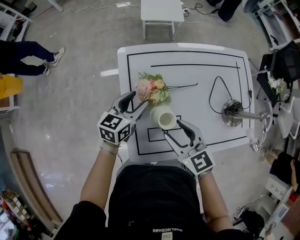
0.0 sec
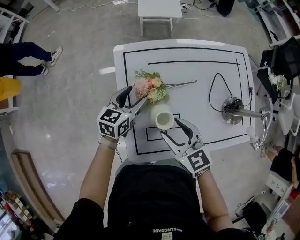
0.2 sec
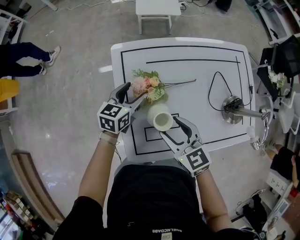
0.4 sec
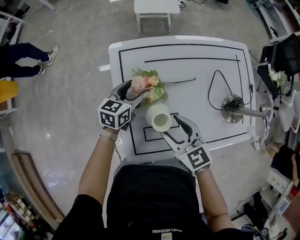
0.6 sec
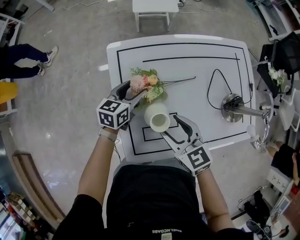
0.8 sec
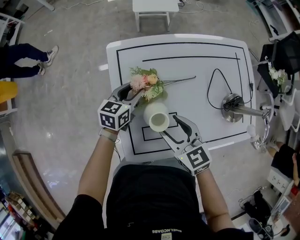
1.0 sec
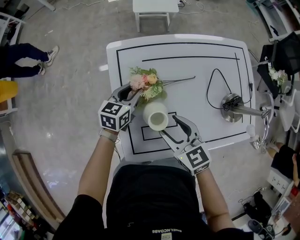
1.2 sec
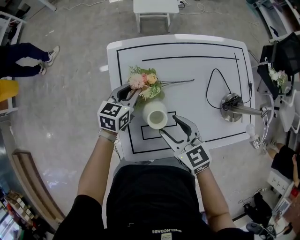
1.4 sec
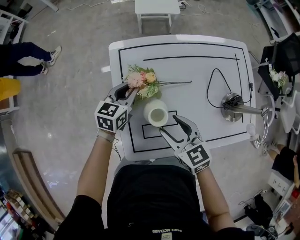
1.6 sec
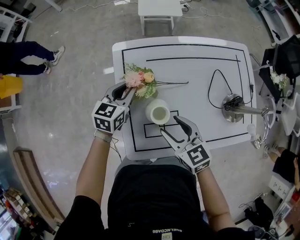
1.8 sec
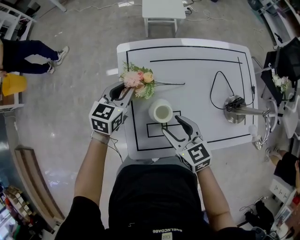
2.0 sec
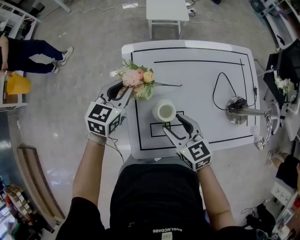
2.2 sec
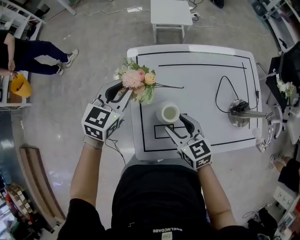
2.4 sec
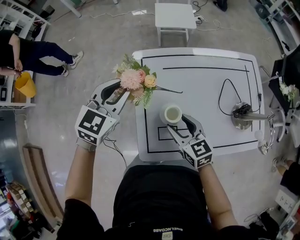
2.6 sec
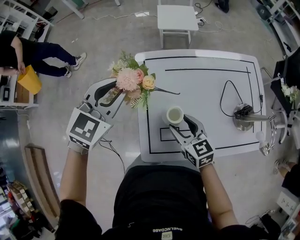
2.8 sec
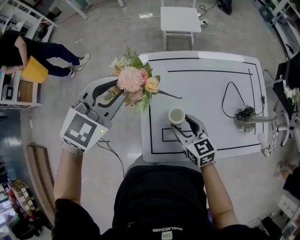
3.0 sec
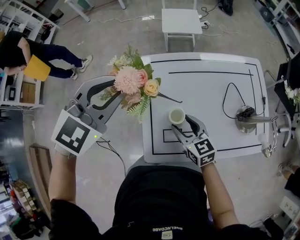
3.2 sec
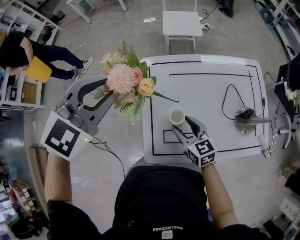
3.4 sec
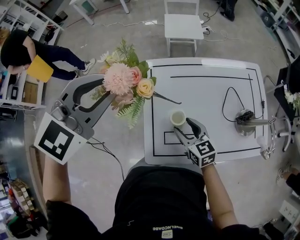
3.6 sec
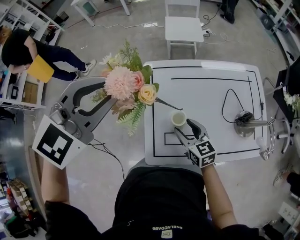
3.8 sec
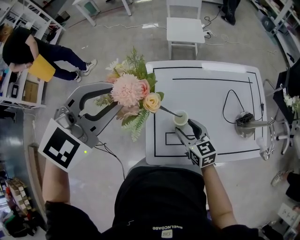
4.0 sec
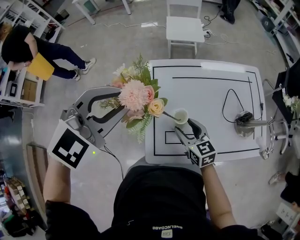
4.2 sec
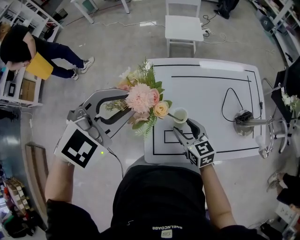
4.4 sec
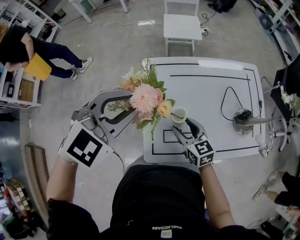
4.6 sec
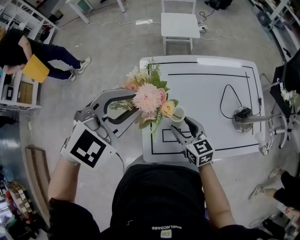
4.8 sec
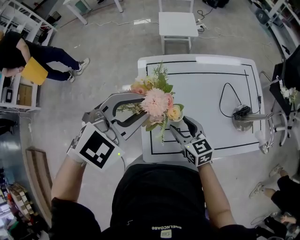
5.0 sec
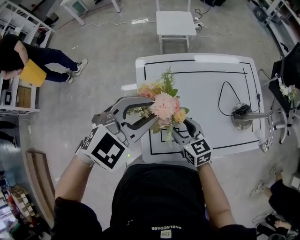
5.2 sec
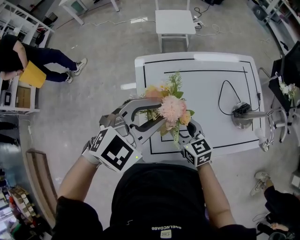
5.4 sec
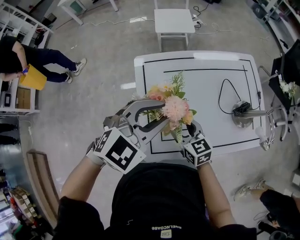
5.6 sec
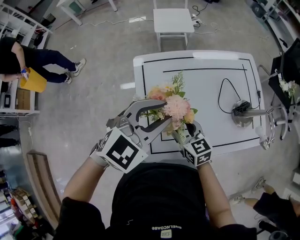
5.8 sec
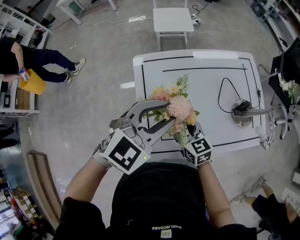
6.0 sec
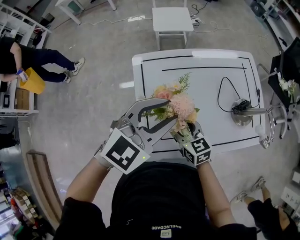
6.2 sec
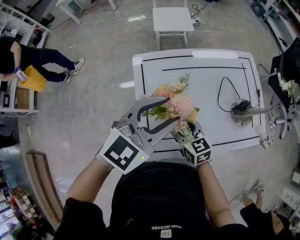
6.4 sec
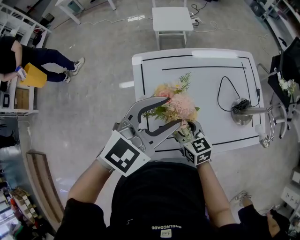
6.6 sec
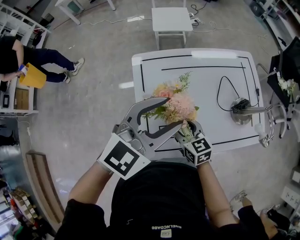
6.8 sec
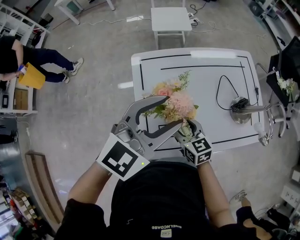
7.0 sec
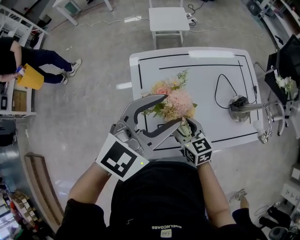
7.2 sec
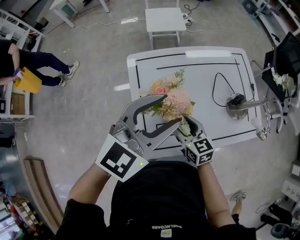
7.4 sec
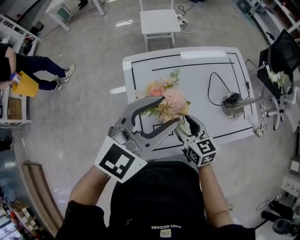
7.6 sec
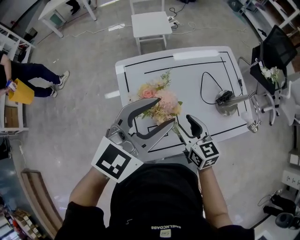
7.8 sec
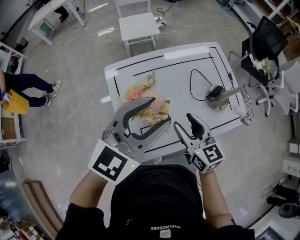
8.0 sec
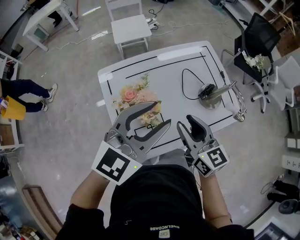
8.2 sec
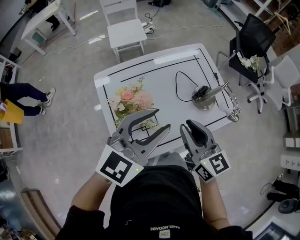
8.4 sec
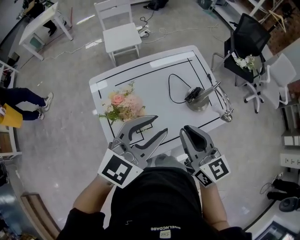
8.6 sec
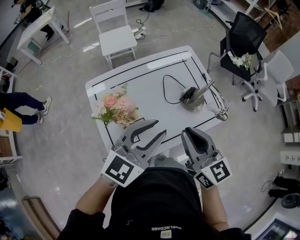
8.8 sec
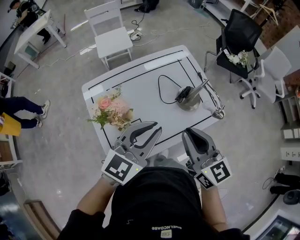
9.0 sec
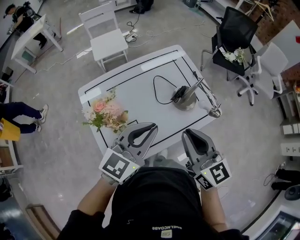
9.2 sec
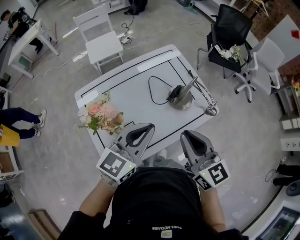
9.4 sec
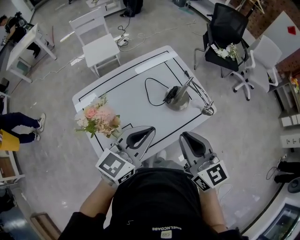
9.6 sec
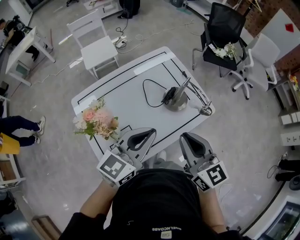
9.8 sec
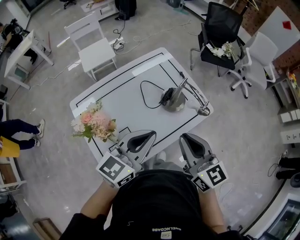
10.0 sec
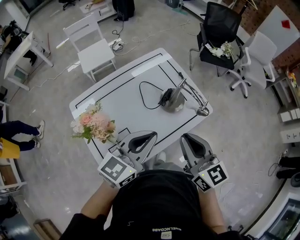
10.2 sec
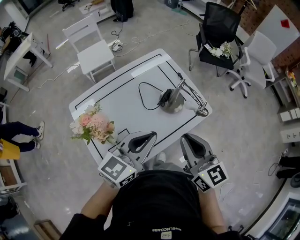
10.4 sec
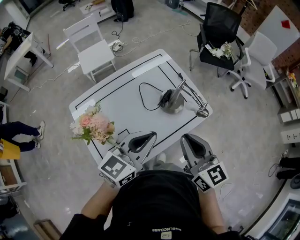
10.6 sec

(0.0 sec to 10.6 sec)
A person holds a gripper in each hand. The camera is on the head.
0.0 sec - 1.6 sec: The left gripper closes its fingers.
1.6 sec - 3.0 sec: The left gripper shifts approximately 25 cm upward, and rotates about 40 degrees.
3.0 sec - 4.6 sec: The left gripper heads backward, covering about 5 cm.
4.6 sec - 6.0 sec: The left gripper moves to the right and downward, approximately 15 cm.
6.0 sec - 7.6 sec: The left gripper shifts some 5 cm upward. The right gripper ends up about 5 cm from where it was.
7.6 sec - 9.0 sec: The left gripper shifts some 15 cm to the right, and closes its fingers; the right gripper moves to the right and upward, some 30 cm, rotates some 20 degrees, and closes its fingers.
9.0 sec - 10.6 sec: Both grippers move to the right, some 5 cm.

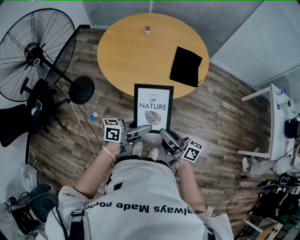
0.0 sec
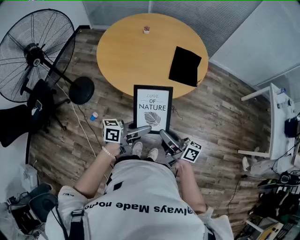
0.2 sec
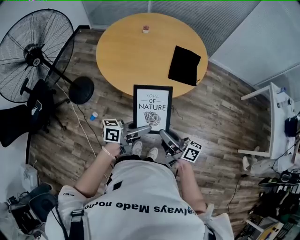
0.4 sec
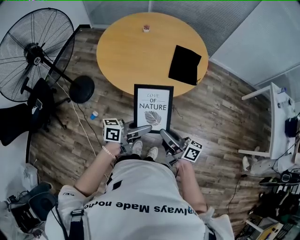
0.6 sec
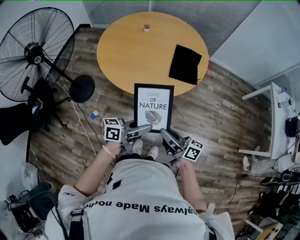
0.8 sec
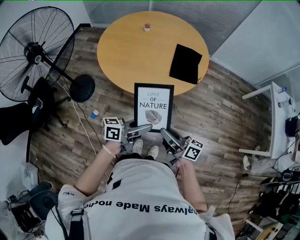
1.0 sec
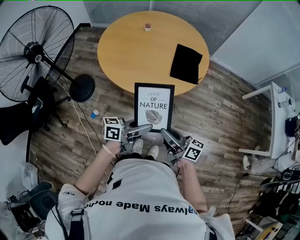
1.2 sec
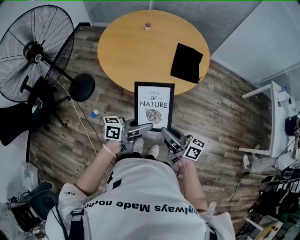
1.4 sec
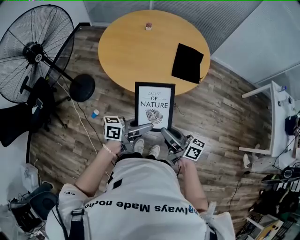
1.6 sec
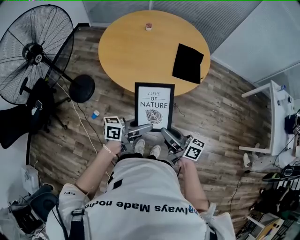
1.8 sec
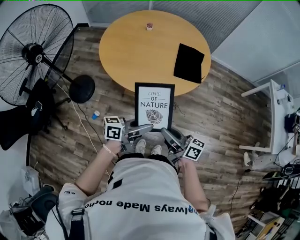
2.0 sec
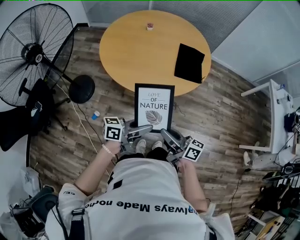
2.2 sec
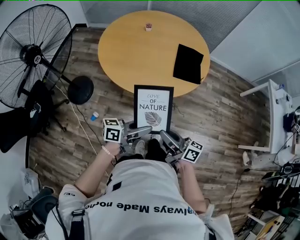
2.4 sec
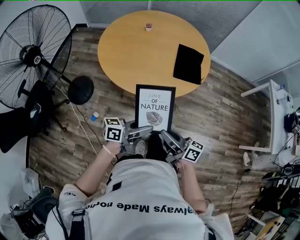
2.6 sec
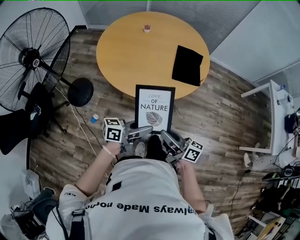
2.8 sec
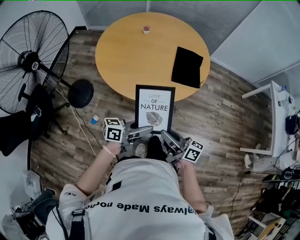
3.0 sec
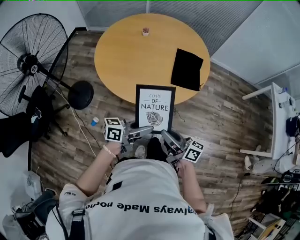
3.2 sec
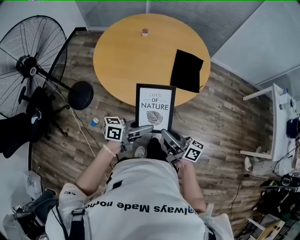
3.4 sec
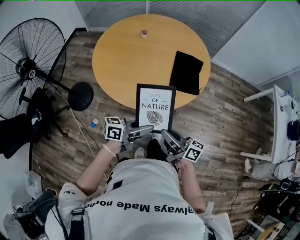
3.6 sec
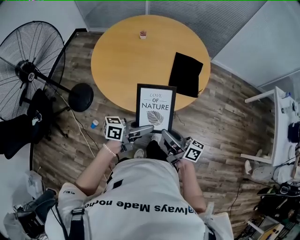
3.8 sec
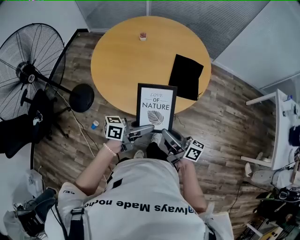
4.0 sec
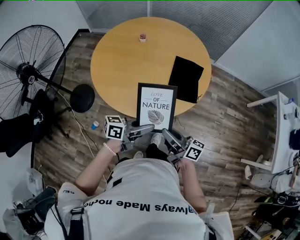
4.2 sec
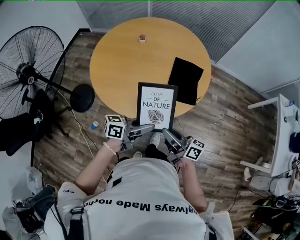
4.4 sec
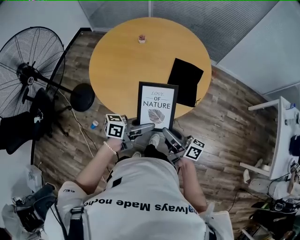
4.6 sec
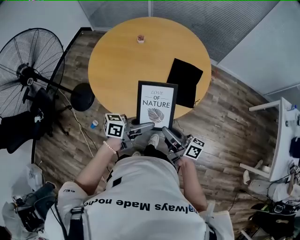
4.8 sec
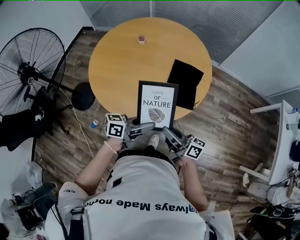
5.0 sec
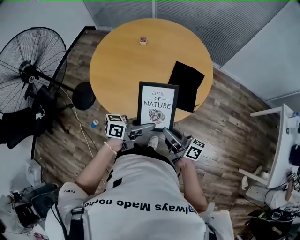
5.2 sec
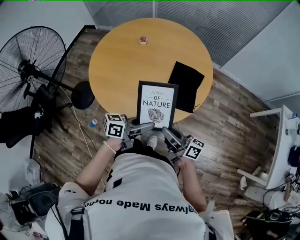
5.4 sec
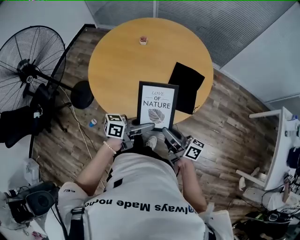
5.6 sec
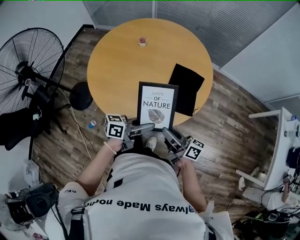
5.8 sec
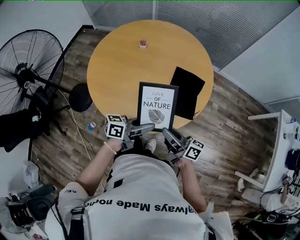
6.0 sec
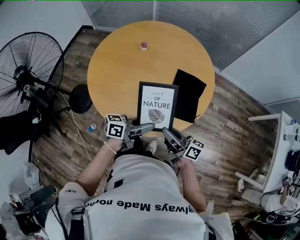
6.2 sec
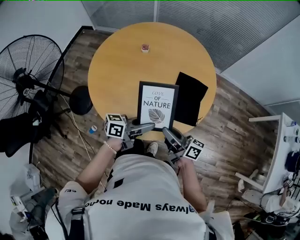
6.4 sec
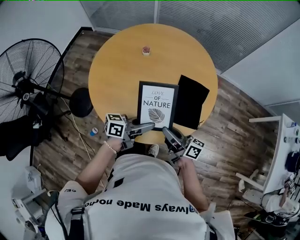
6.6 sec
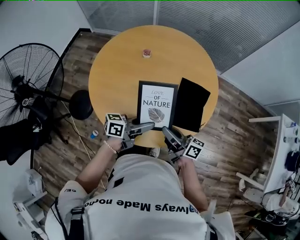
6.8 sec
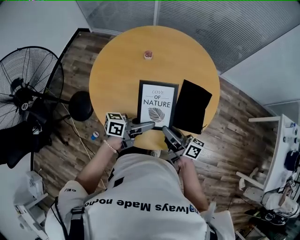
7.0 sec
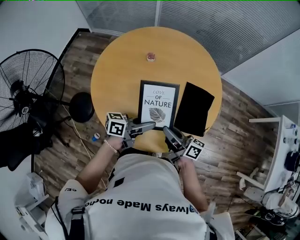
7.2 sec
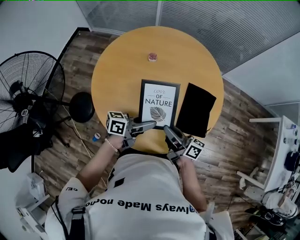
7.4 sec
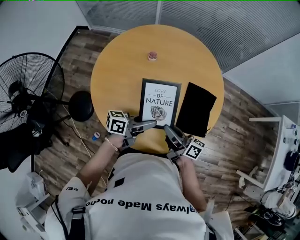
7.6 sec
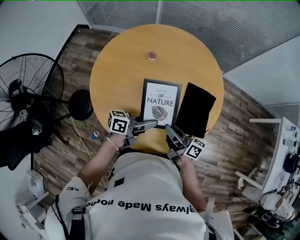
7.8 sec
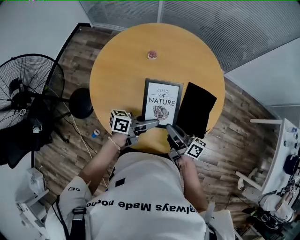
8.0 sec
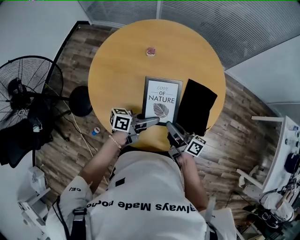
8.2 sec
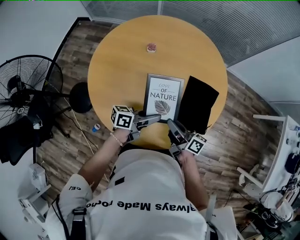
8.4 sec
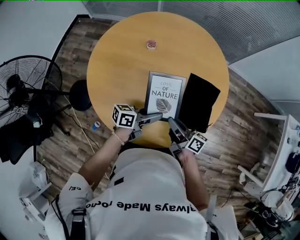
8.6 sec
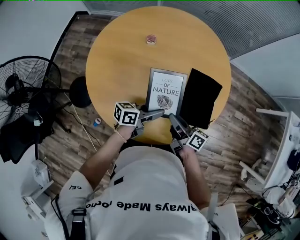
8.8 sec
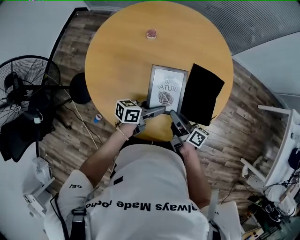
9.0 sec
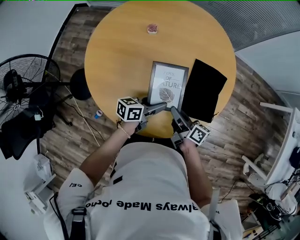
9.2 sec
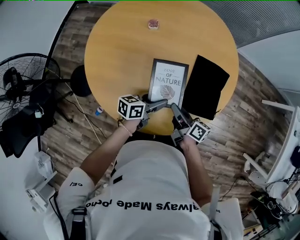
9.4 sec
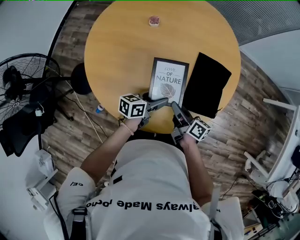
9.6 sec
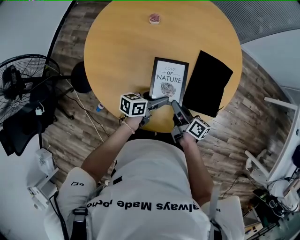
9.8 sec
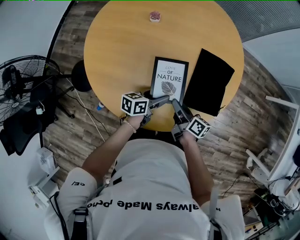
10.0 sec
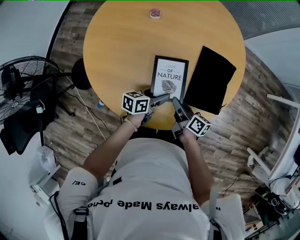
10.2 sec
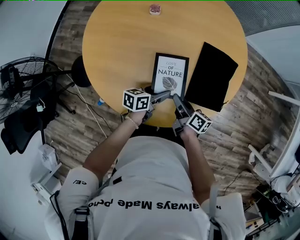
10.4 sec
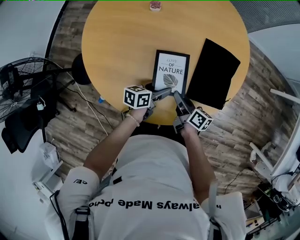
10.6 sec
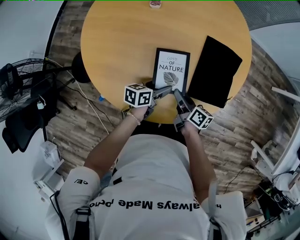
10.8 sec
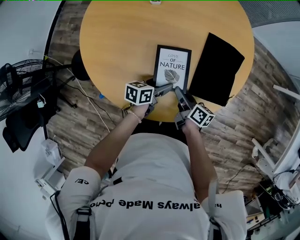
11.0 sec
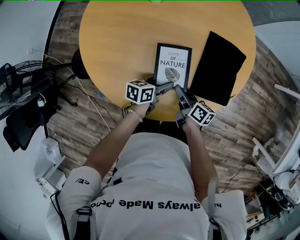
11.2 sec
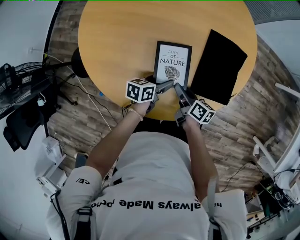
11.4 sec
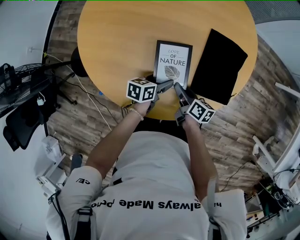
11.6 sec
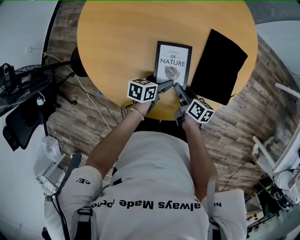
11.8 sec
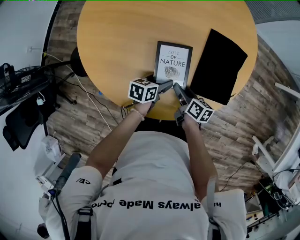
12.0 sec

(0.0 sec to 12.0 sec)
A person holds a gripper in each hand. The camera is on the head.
0.0 sec - 3.0 sec: The grippers move only a little.
3.0 sec - 4.4 sec: Both grippers move forward, some 15 cm.
4.4 sec - 6.0 sec: The two grippers go some 10 cm forward.
6.0 sec - 7.6 sec: The grippers both shift to the left and forward by roughly 20 cm.
7.6 sec - 9.0 sec: The grippers both shift downward by approximately 10 cm.
9.0 sec - 10.4 sec: The two grippers go roughly 10 cm downward.
10.4 sec - 12.0 sec: Both grippers travel together downward, about 5 cm.

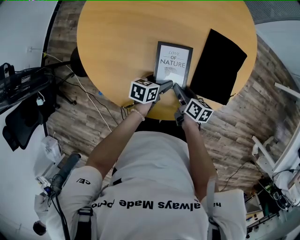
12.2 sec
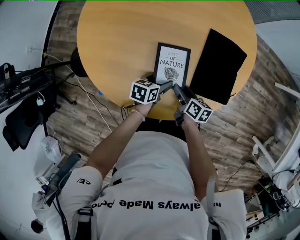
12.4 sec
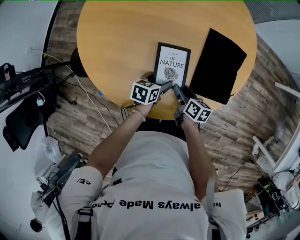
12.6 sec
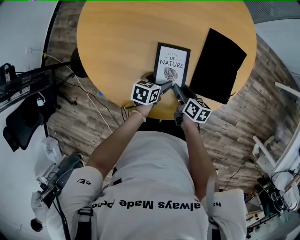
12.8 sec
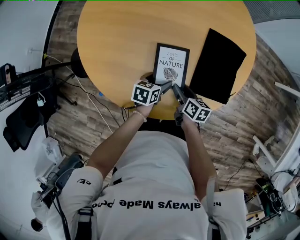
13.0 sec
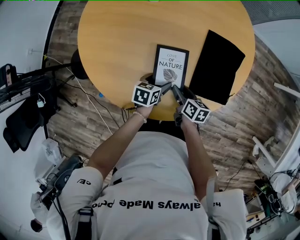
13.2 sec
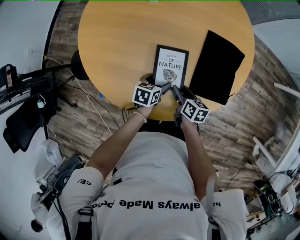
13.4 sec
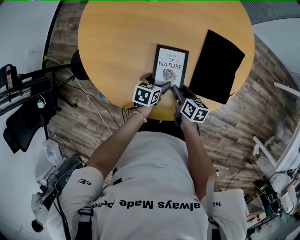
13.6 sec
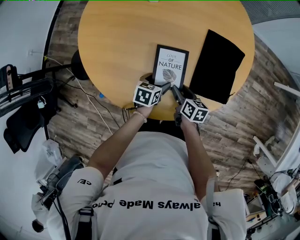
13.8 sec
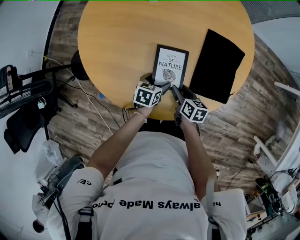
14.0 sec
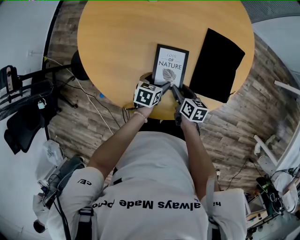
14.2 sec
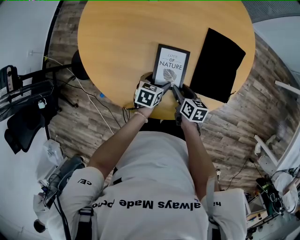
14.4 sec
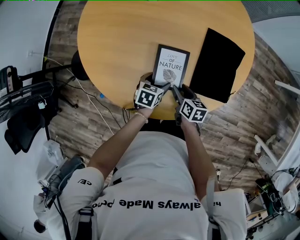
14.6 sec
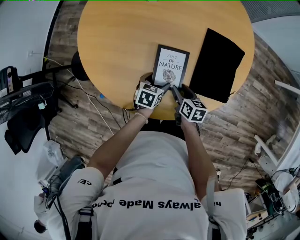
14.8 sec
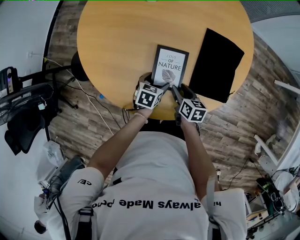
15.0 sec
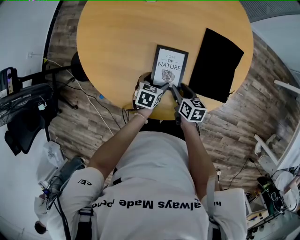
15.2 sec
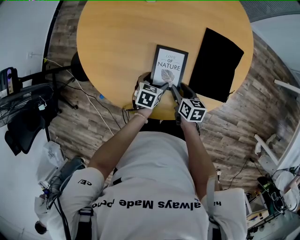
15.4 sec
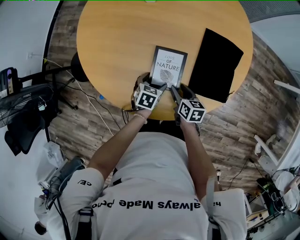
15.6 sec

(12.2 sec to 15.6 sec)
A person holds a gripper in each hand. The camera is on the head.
12.2 sec - 13.8 sec: There are only small adjustments of the grippers.
13.8 sec - 15.6 sec: The grippers move only a little.
